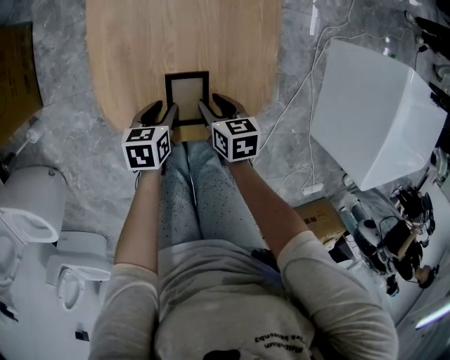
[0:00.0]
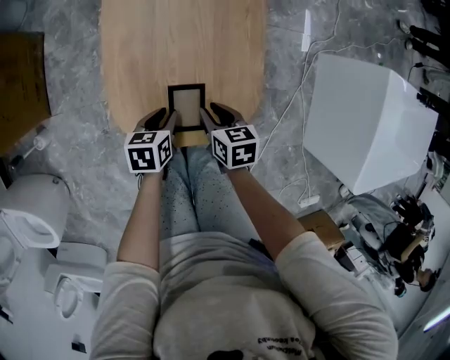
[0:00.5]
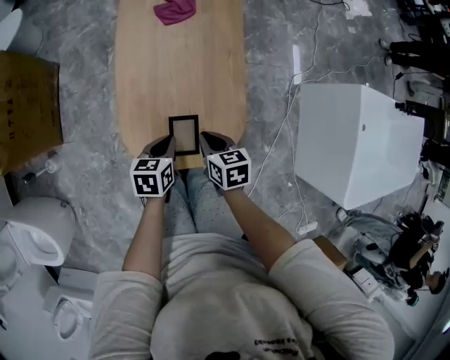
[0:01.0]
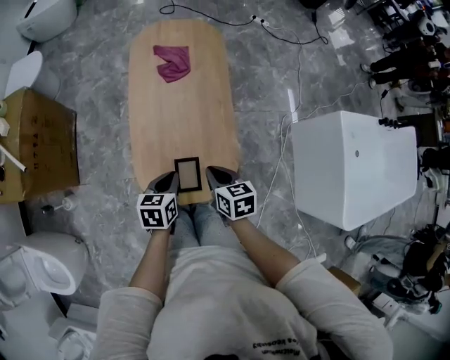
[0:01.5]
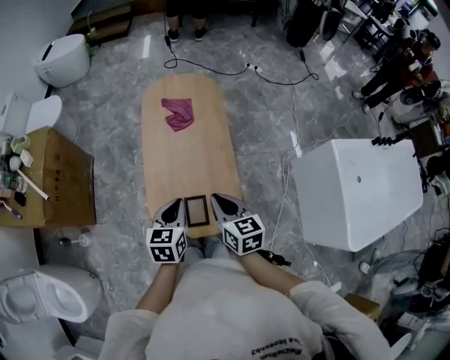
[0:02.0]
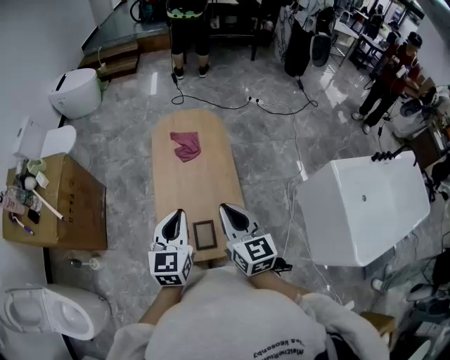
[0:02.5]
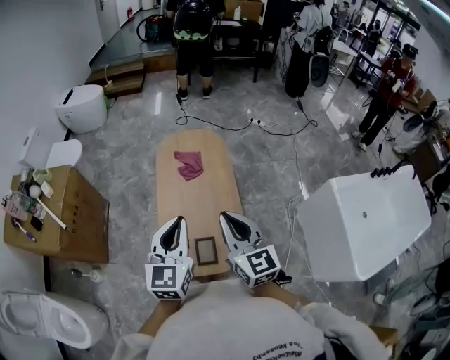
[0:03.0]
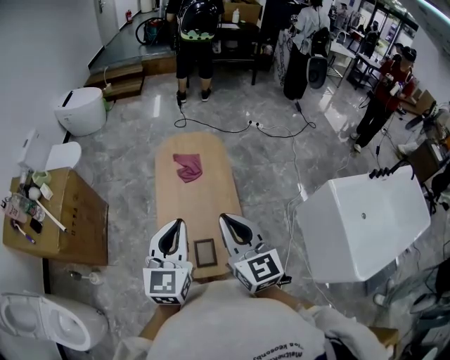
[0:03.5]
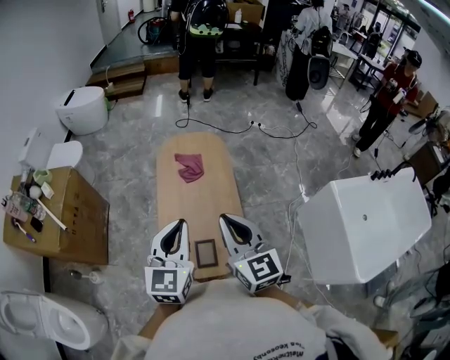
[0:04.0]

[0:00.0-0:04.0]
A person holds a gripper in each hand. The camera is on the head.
0:00.0 to 0:02.0: Both grippers travel together upward, some 40 cm. The left gripper swivels roughly 40 degrees, and closes its fingers. Meanwhile the right gripper changes its angle by approximately 30 degrees, and closes.
0:02.0 to 0:04.0: Both grippers travel together upward, approximately 20 cm. The left gripper rotates roughly 30 degrees. Meanwhile the right gripper changes its angle by roughly 30 degrees.

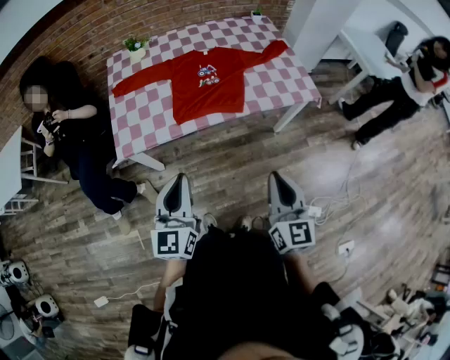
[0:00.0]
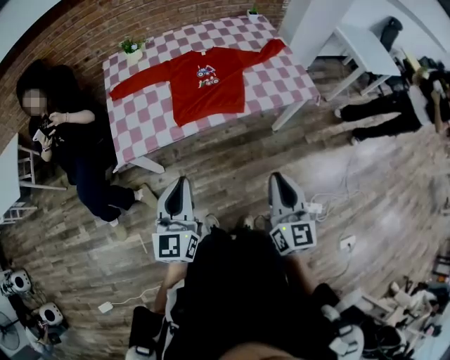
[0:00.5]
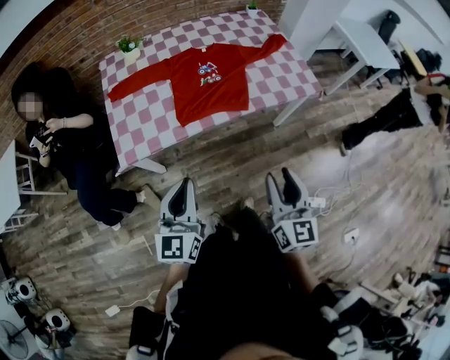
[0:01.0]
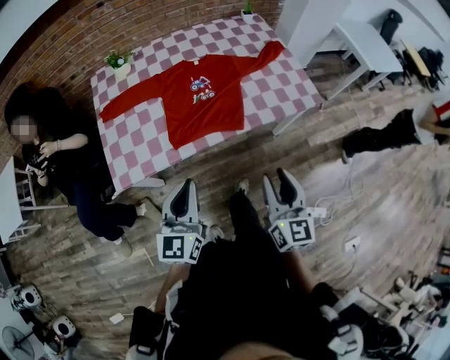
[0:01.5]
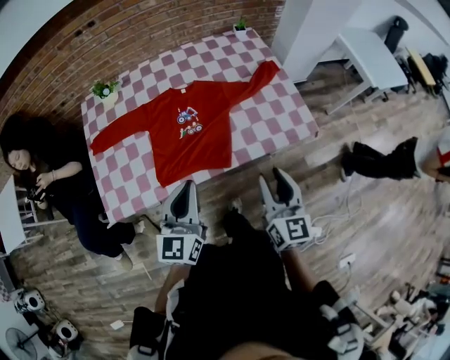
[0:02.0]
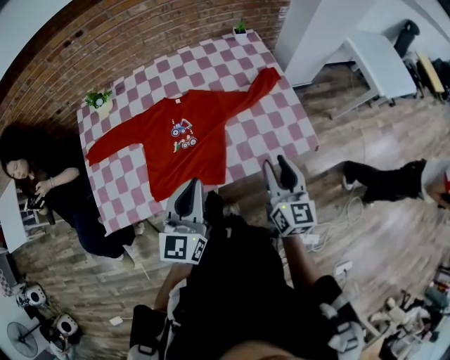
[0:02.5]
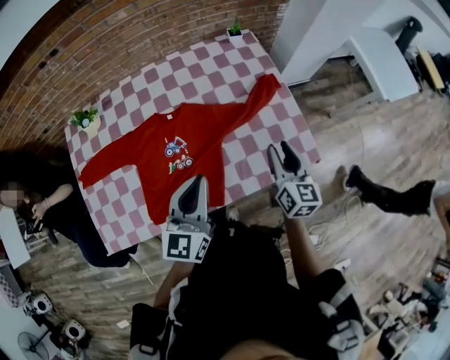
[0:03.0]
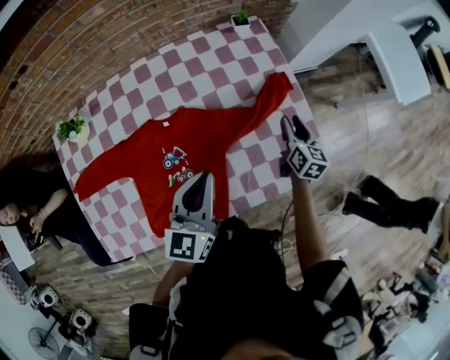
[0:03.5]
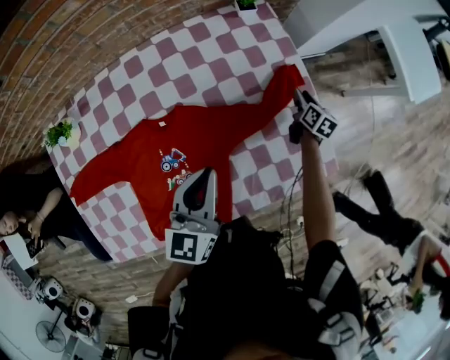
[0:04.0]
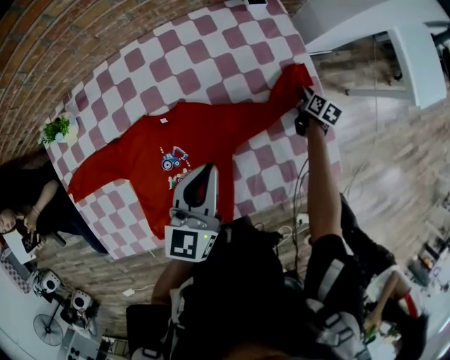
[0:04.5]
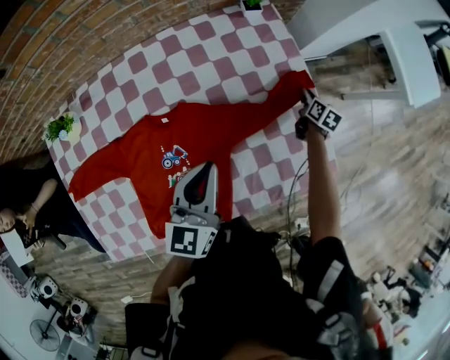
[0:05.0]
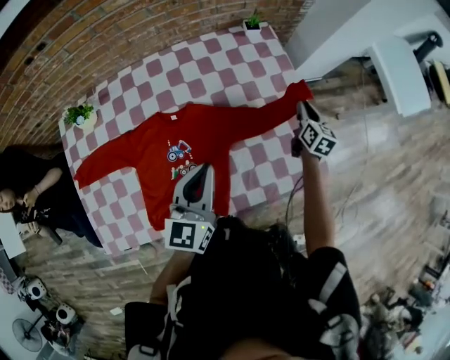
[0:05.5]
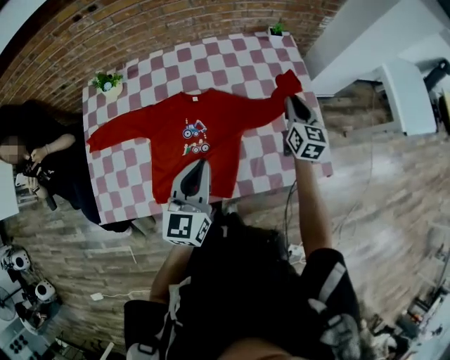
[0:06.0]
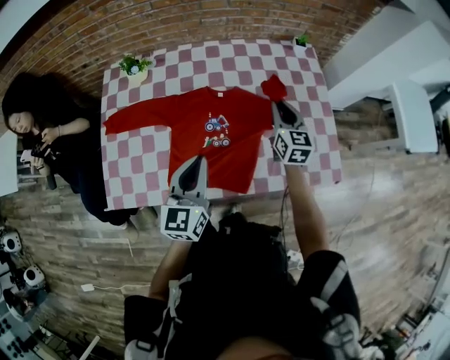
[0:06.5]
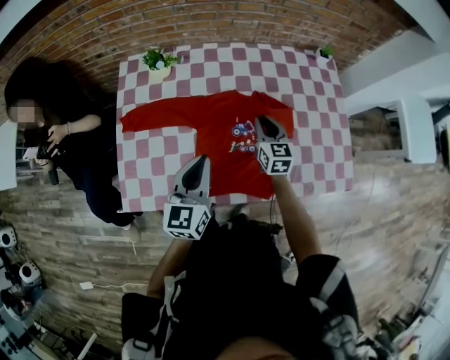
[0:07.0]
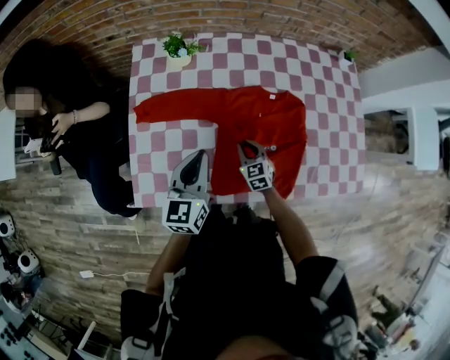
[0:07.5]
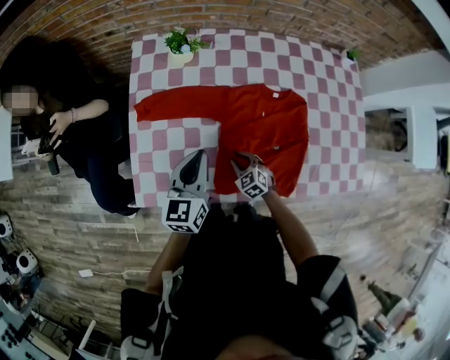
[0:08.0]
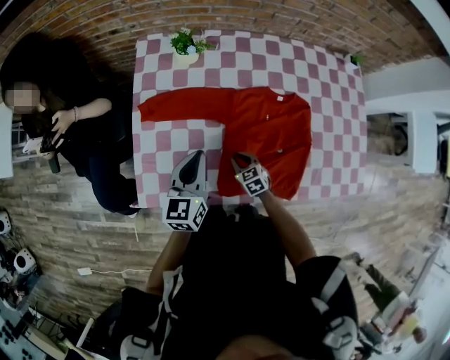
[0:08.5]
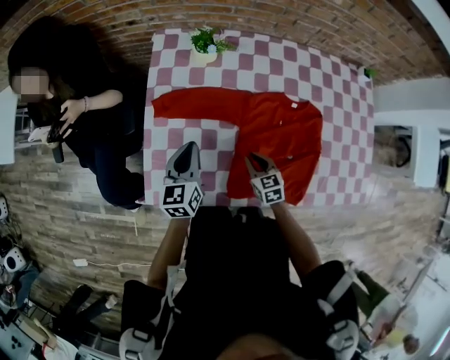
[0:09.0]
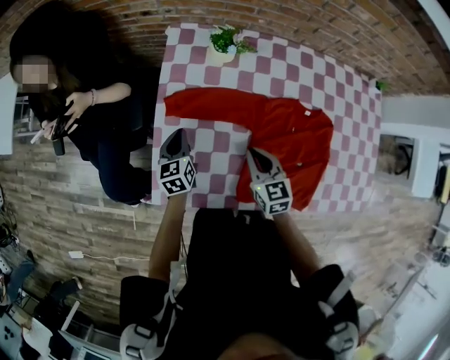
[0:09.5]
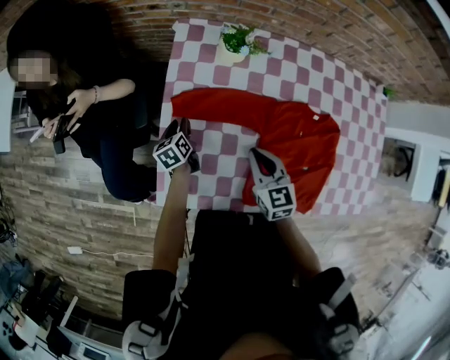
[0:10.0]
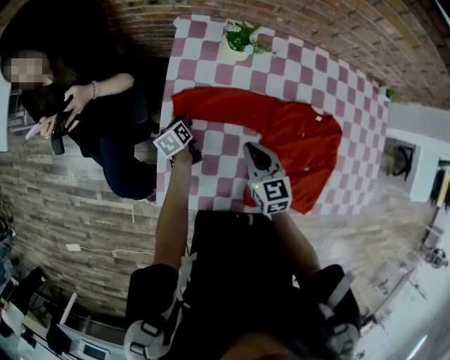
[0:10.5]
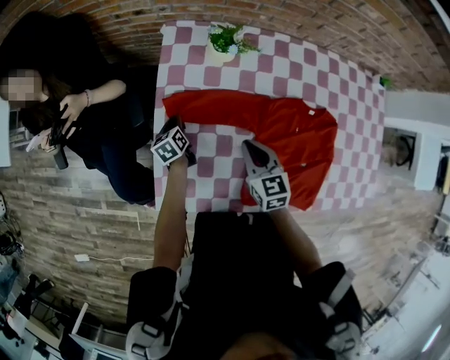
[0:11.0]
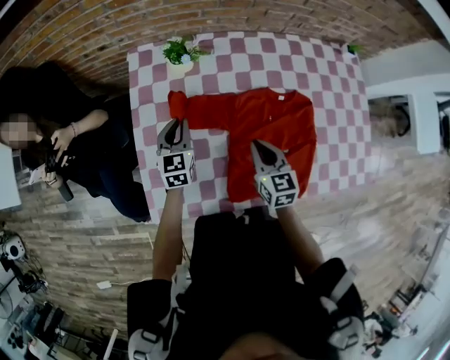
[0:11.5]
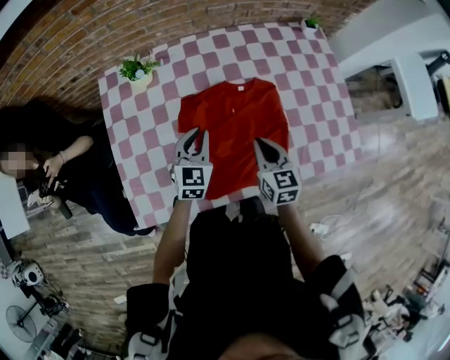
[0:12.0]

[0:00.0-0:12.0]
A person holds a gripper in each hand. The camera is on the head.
0:00.0 to 0:02.0: The grippers both shift forward by approximately 30 cm. The right gripper opens up.
0:02.0 to 0:04.0: Both grippers are carried forward, roughly 50 cm. The right gripper travels downward by roughly 30 cm, and turns by roughly 40 degrees.
0:04.0 to 0:06.0: The right gripper travels upward, backward and to the left by approximately 30 cm, turns by about 40 degrees, and closes its fingers, while the left gripper heads backward, covering about 20 cm.
0:06.0 to 0:08.0: The right gripper travels to the left and downward by approximately 60 cm, and tilts its fingers about 40 degrees downward, while the left gripper moves to the left, about 35 cm.
0:08.0 to 0:10.0: The right gripper shifts about 25 cm upward, forward and to the left, and rotates approximately 30 degrees; the left gripper goes about 35 cm downward, to the left and forward, swivels roughly 40 degrees, and opens its fingers.
0:10.0 to 0:12.0: The left gripper changes place by approximately 40 cm, rolls clockwise, seen from behind, by roughly 60 degrees, and closes. The right gripper shifts by approximately 30 cm, and swivels roughly 30 degrees.

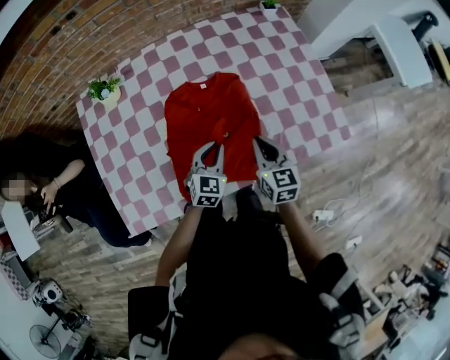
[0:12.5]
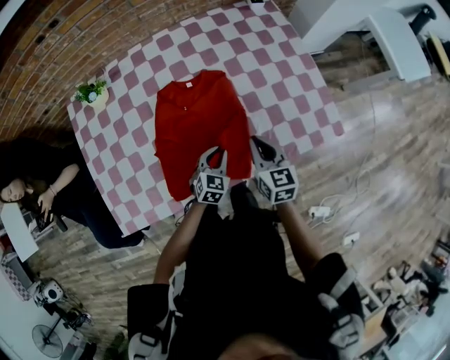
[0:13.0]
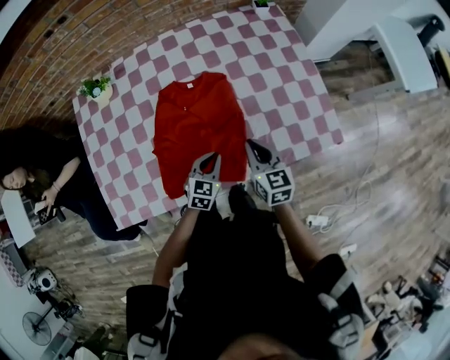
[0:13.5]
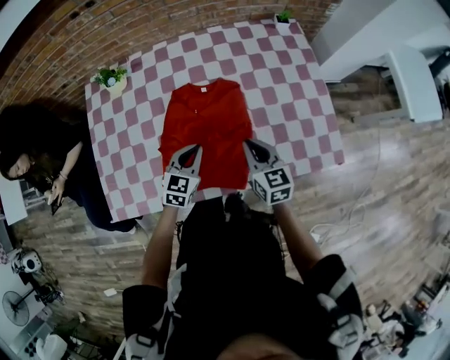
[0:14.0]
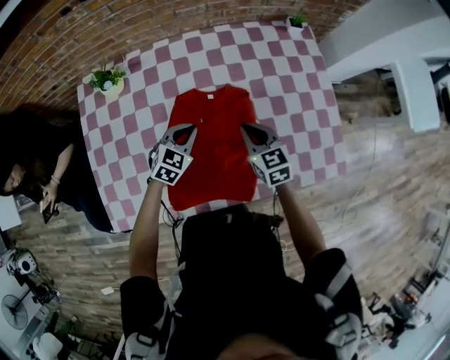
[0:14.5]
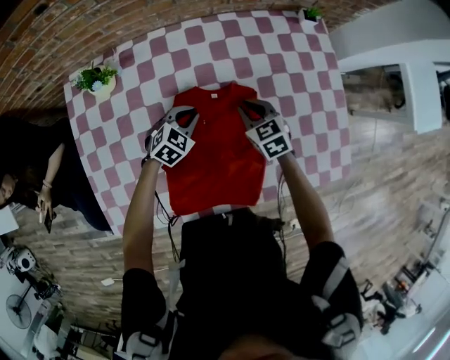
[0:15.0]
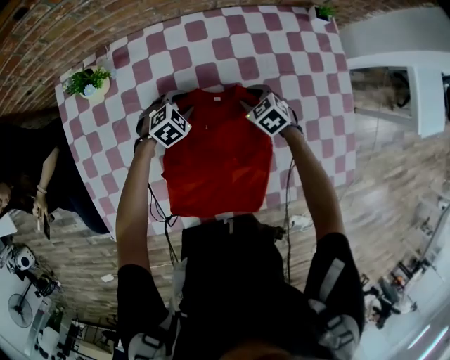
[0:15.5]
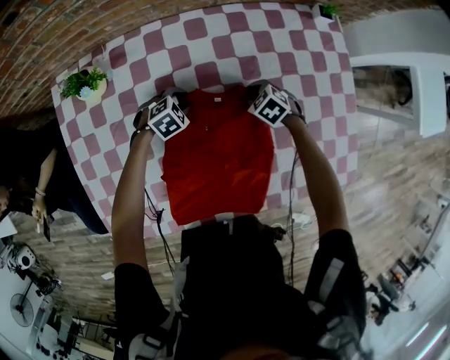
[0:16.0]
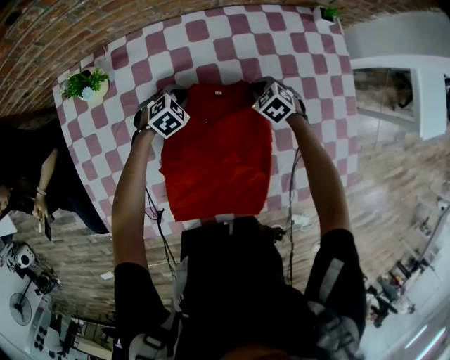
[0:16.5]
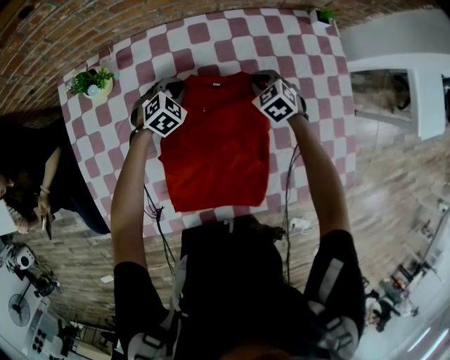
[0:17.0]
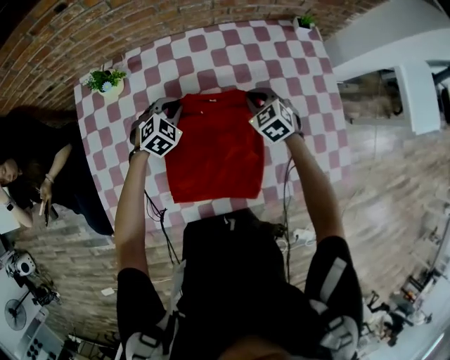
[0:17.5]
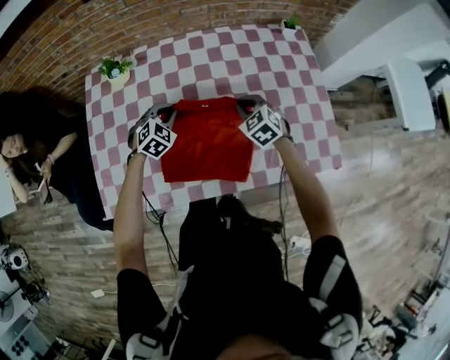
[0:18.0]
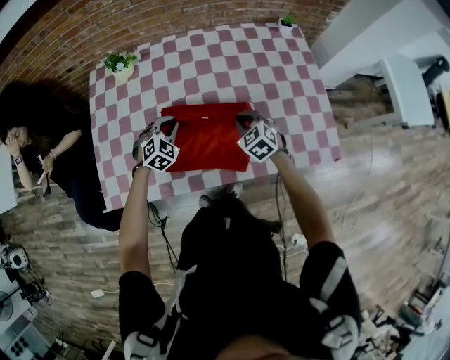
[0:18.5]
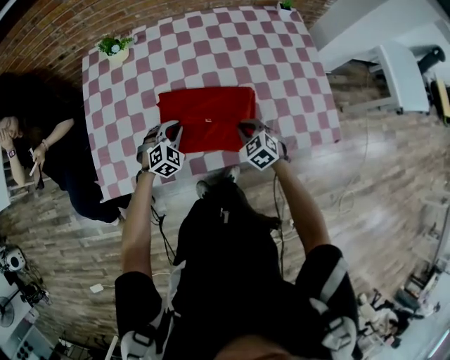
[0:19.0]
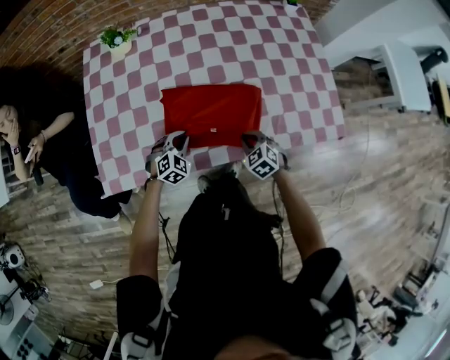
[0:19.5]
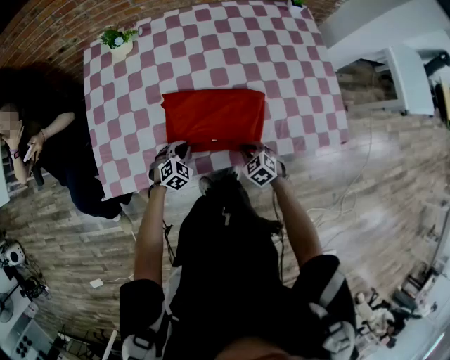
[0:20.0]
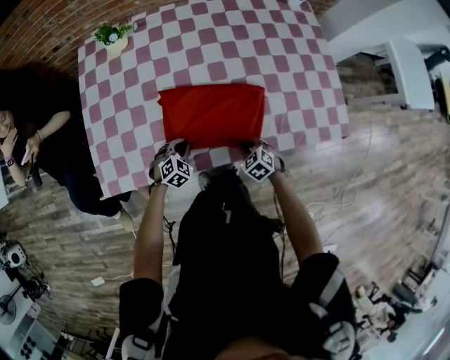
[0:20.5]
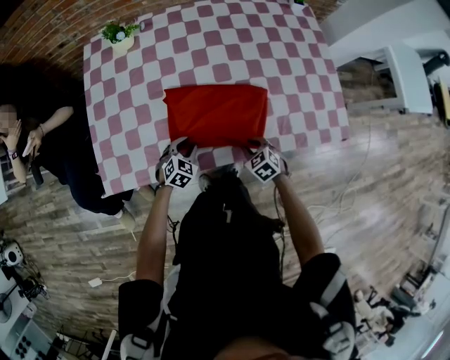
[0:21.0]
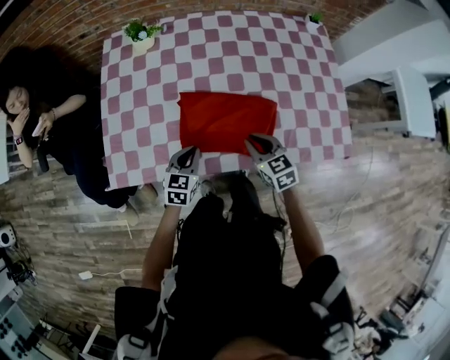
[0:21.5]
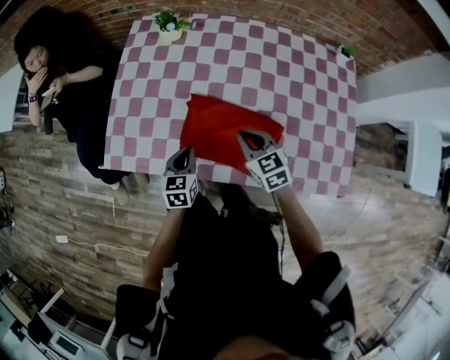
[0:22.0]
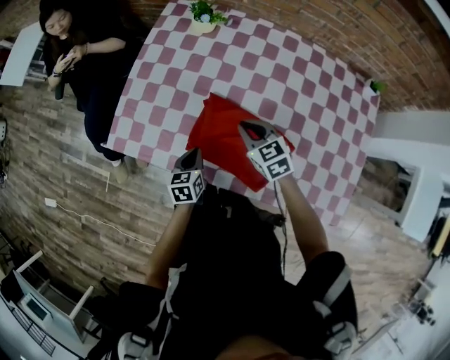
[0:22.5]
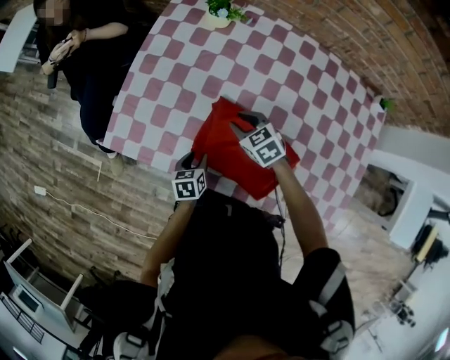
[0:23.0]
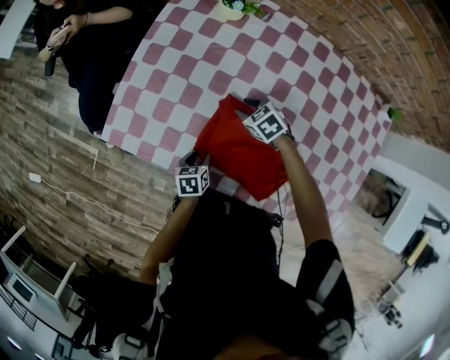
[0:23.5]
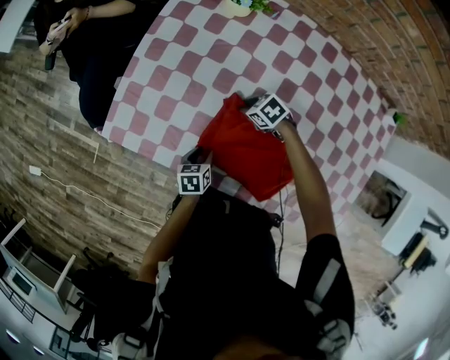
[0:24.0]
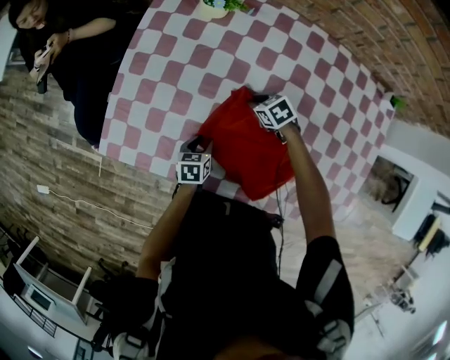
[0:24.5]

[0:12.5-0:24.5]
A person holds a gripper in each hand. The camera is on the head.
0:12.5 to 0:14.5: The right gripper heads forward, covering approximately 15 cm, and swivels roughly 20 degrees. Meanwhile the left gripper moves forward and to the left, roughly 15 cm.
0:14.5 to 0:16.5: The right gripper is displaced downward and forward by some 25 cm, angles its fingers downward, by approximately 30 degrees, and opens and closes again, while the left gripper moves forward and downward, some 25 cm, rotates some 30 degrees, and opens, then closes once more.
0:16.5 to 0:18.5: Both grippers travel together backward and upward, approximately 30 cm. The left gripper changes its angle by some 30 degrees; the right gripper swivels approximately 20 degrees.
0:18.5 to 0:20.5: The right gripper travels backward and downward by about 25 cm. The left gripper moves downward and backward, about 25 cm.
0:20.5 to 0:22.5: The right gripper ends up about 30 cm from where it was, and rotates some 30 degrees, while the left gripper travels upward by approximately 10 cm, and rotates around the line of its fingers by some 80 degrees, counterclockwise from behind.
0:22.5 to 0:24.5: The left gripper is displaced downward by approximately 10 cm, and opens up. Meanwhile the right gripper moves downward, some 20 cm, and rotates some 30 degrees.
